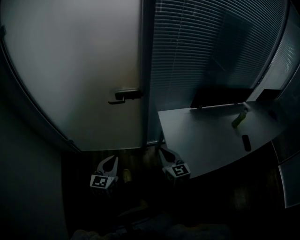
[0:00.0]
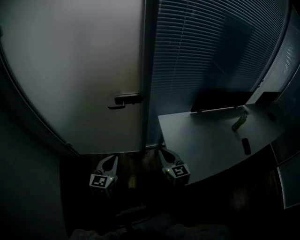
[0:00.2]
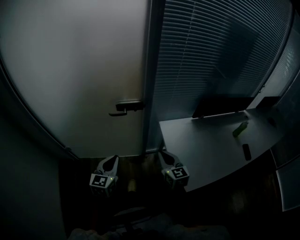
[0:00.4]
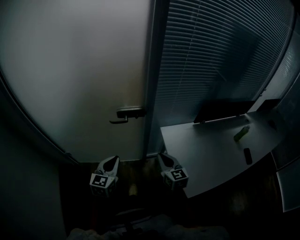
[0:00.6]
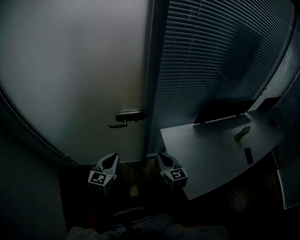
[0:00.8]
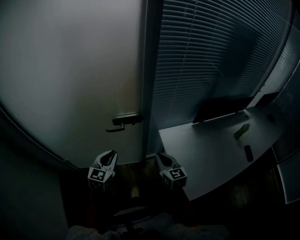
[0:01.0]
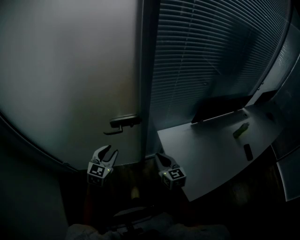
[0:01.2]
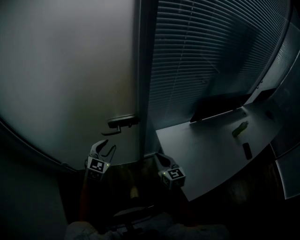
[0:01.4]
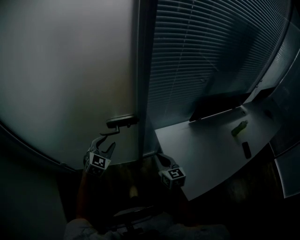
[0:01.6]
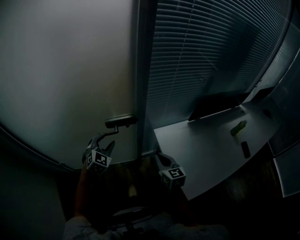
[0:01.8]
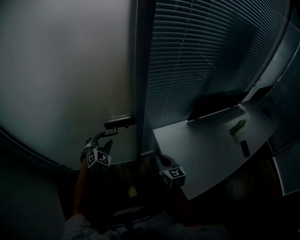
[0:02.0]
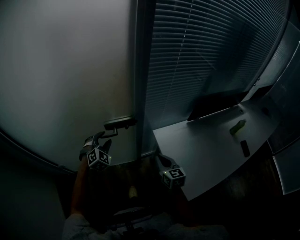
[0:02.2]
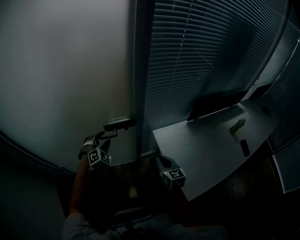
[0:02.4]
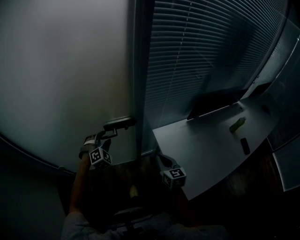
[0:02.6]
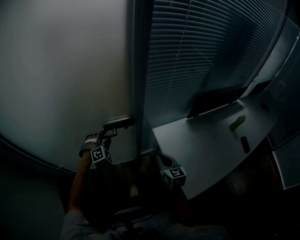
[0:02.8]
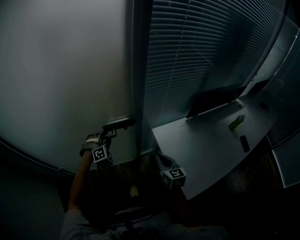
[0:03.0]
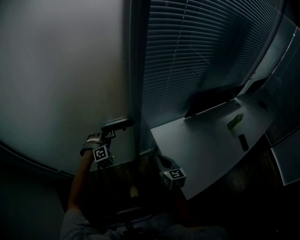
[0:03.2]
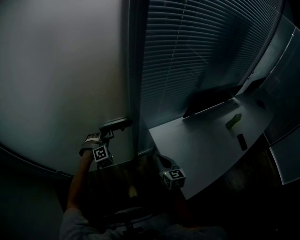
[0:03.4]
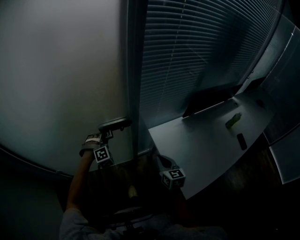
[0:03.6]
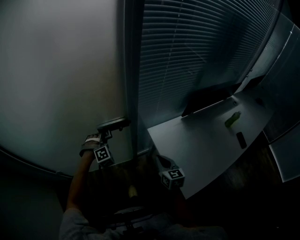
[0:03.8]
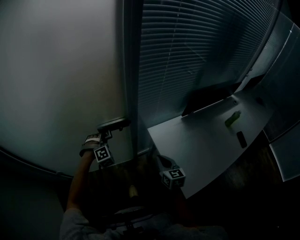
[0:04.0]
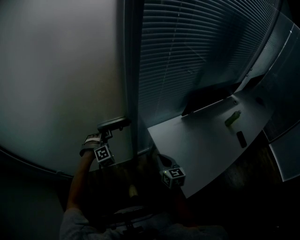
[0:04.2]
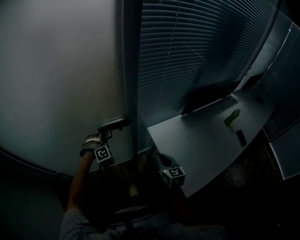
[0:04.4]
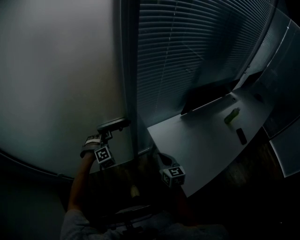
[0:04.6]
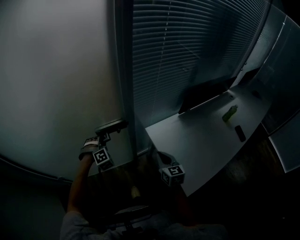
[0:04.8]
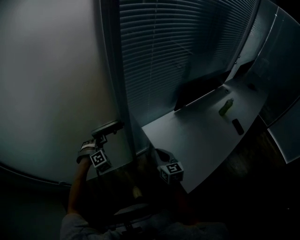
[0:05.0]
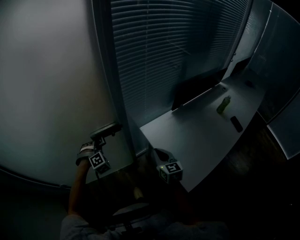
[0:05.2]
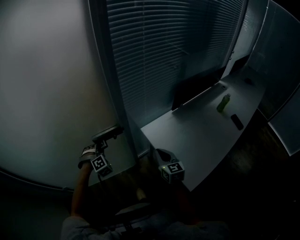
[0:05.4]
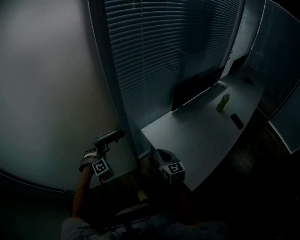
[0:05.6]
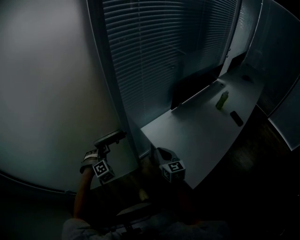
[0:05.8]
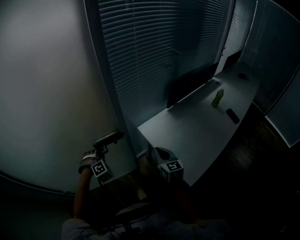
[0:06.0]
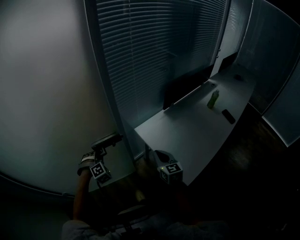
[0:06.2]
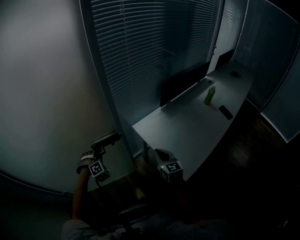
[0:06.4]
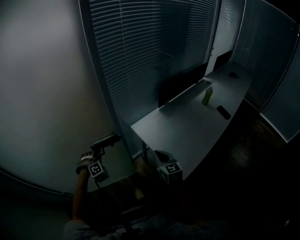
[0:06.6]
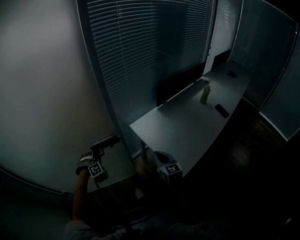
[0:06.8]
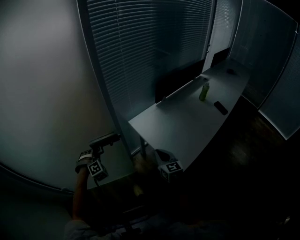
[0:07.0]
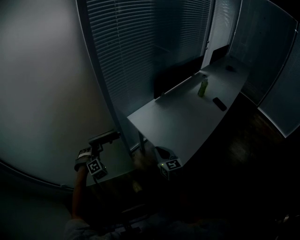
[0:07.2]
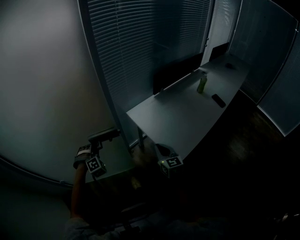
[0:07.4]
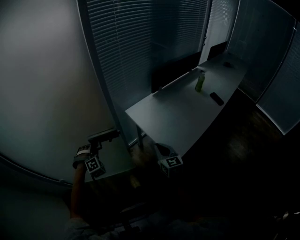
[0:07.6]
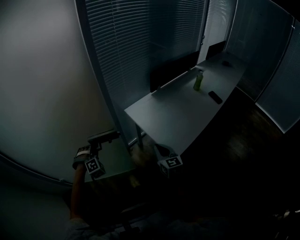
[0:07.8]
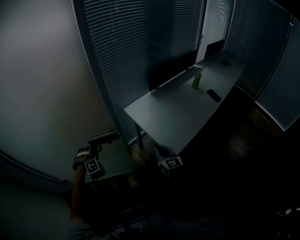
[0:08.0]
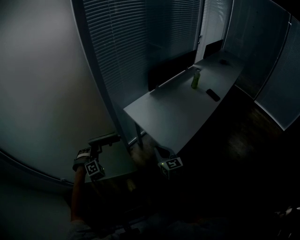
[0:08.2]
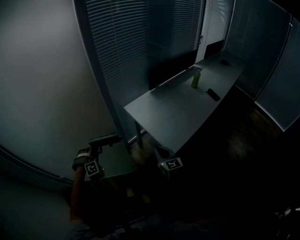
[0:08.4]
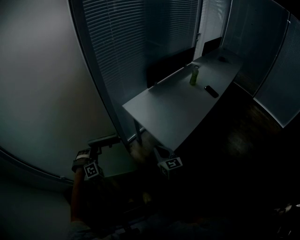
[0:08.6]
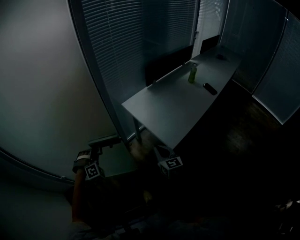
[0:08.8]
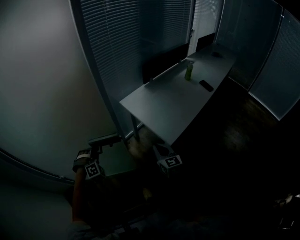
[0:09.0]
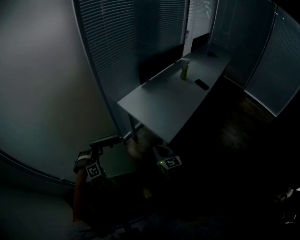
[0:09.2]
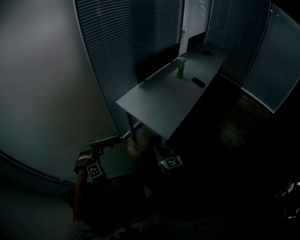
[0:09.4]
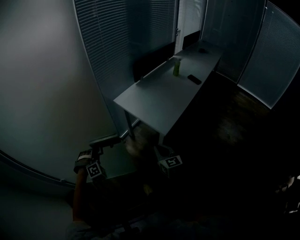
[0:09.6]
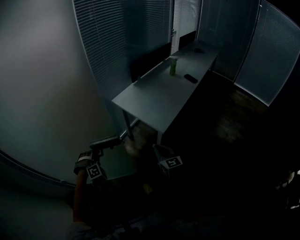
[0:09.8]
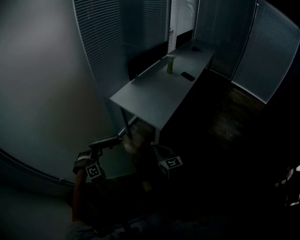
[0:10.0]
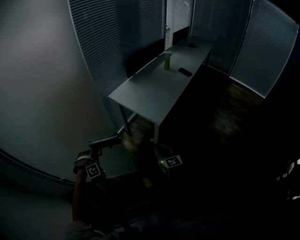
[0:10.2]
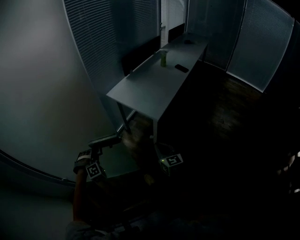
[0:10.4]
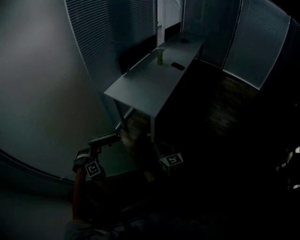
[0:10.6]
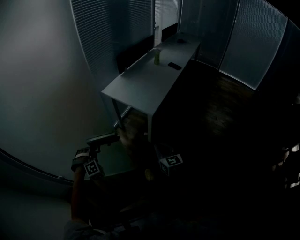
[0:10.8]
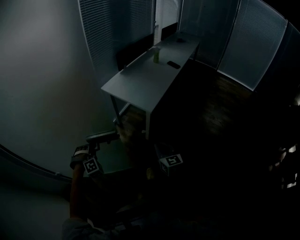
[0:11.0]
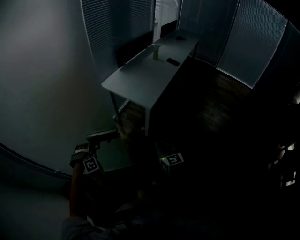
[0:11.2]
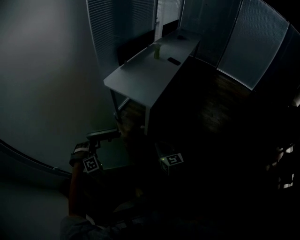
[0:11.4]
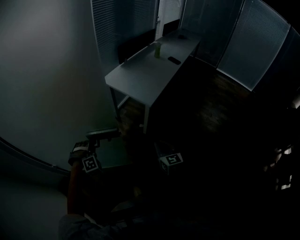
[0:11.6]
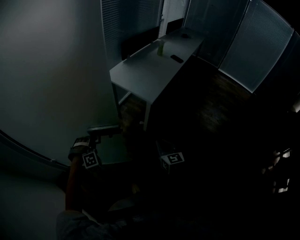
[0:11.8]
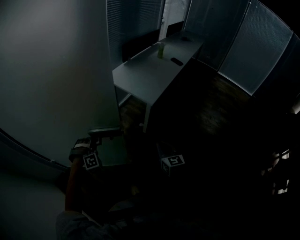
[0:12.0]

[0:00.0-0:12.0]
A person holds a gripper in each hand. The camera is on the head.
0:00.0 to 0:01.6: The left gripper goes roughly 30 cm forward, turns by some 40 degrees, and opens its fingers. The right gripper is displaced forward by roughly 15 cm.
0:01.6 to 0:03.0: The left gripper goes about 10 cm downward and forward, and swivels about 40 degrees.
0:03.0 to 0:04.4: The left gripper closes its fingers.
0:04.4 to 0:06.0: The left gripper goes roughly 5 cm backward.
0:06.0 to 0:07.6: The two grippers go approximately 15 cm backward.
0:07.6 to 0:09.0: The two grippers go about 10 cm backward.
0:09.0 to 0:10.4: Both grippers move backward, some 20 cm.
0:10.4 to 0:12.0: The two grippers go roughly 10 cm backward.

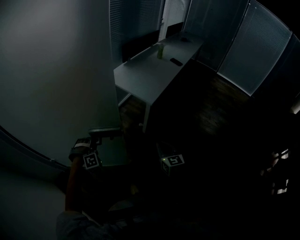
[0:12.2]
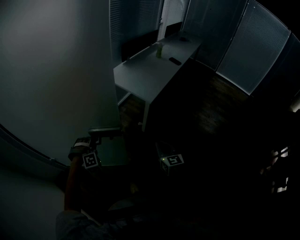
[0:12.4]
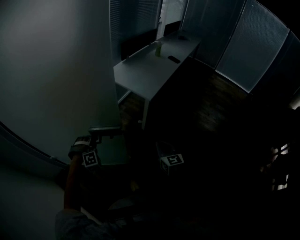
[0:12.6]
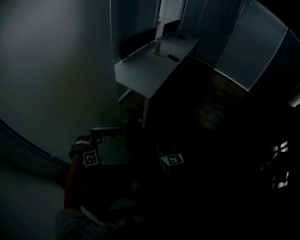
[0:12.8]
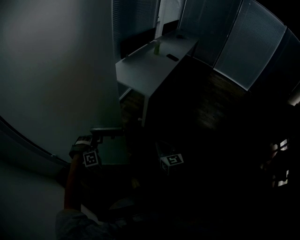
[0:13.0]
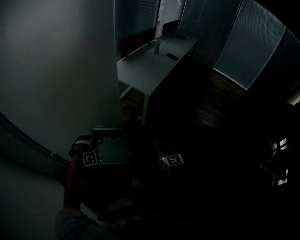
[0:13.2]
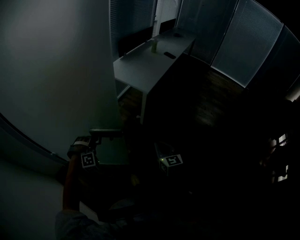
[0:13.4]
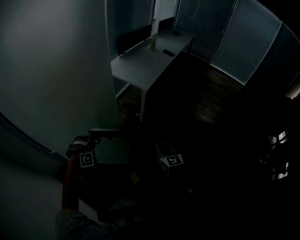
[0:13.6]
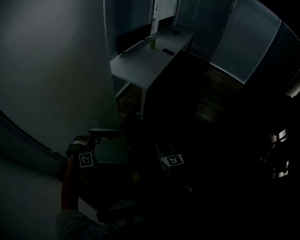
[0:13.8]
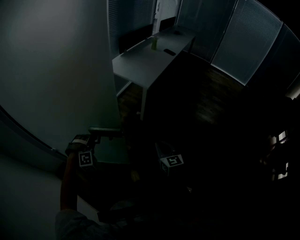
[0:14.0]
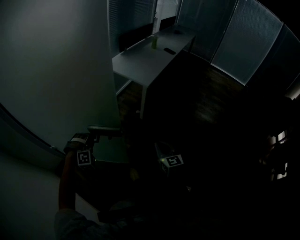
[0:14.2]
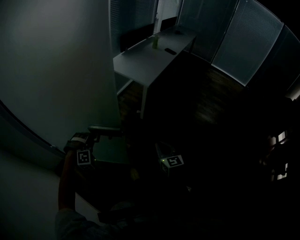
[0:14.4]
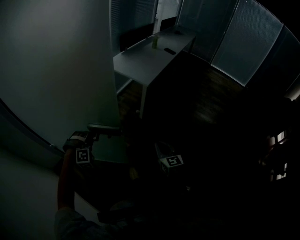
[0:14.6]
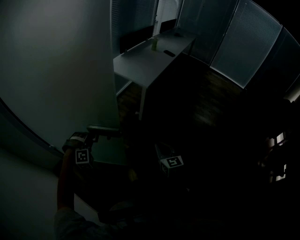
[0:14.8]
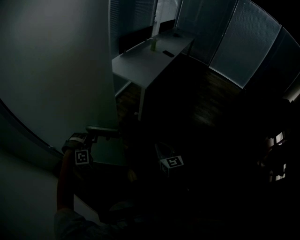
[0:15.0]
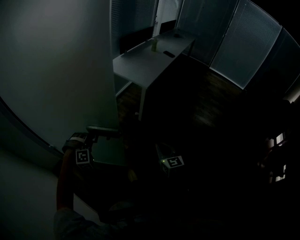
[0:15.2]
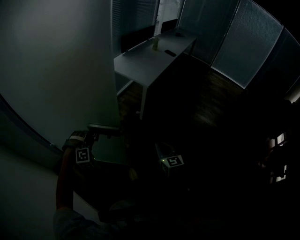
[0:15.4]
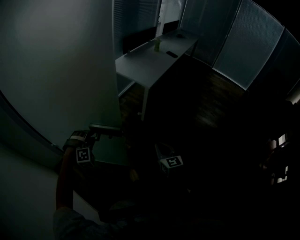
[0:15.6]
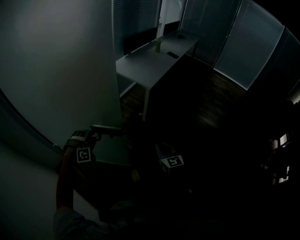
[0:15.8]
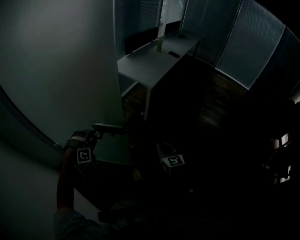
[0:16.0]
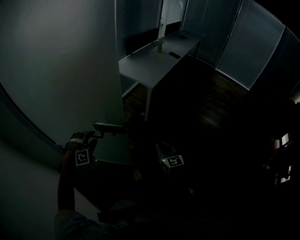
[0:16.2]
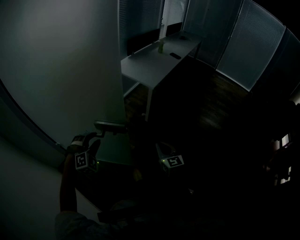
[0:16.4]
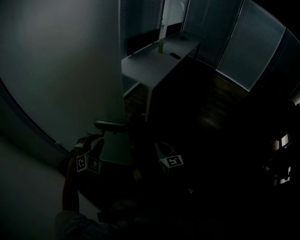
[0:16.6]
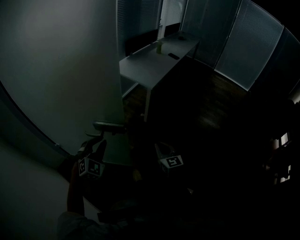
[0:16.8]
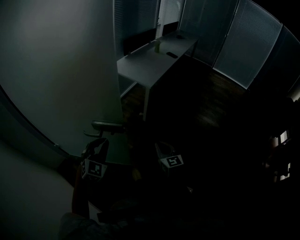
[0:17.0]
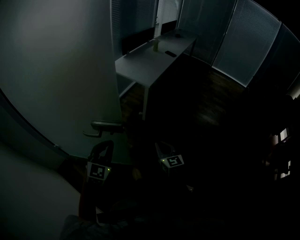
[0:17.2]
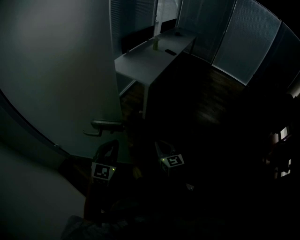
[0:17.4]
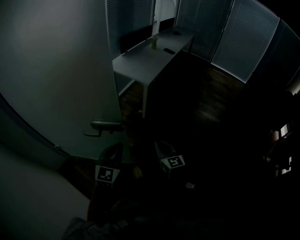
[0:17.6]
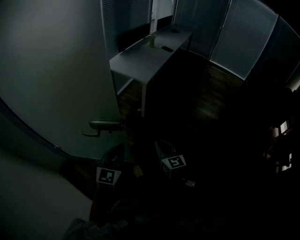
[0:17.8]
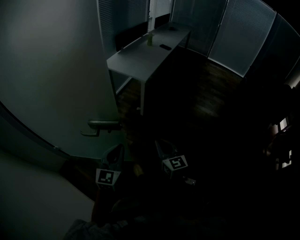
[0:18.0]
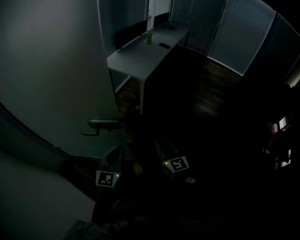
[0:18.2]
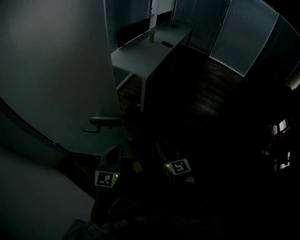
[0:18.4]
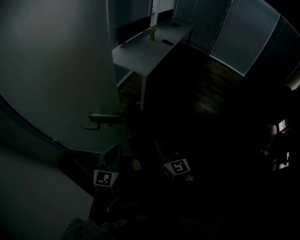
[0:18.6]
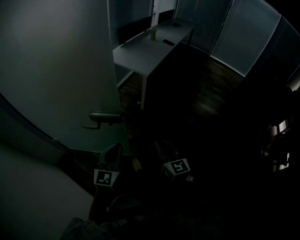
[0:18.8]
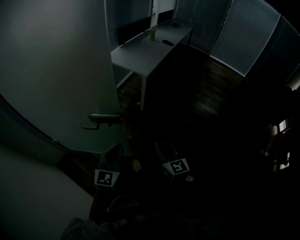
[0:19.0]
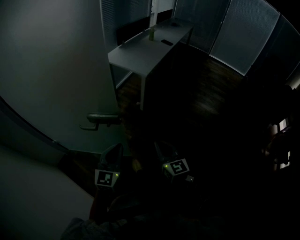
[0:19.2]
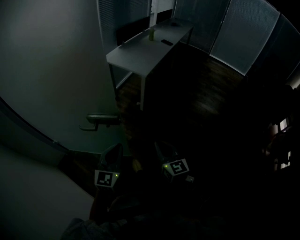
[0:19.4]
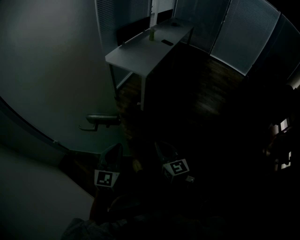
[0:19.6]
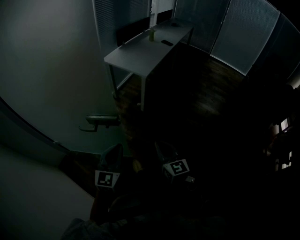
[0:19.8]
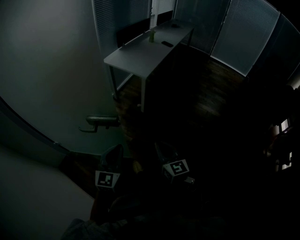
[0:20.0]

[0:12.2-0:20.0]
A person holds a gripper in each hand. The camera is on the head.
0:12.2 to 0:13.8: The two grippers go approximately 15 cm backward.
0:13.8 to 0:15.4: The left gripper opens up.
0:15.4 to 0:16.8: The left gripper travels upward and backward by about 10 cm, rotates about 40 degrees, and opens and closes again.
0:16.8 to 0:18.4: The right gripper goes roughly 10 cm backward and upward. Meanwhile the left gripper goes about 10 cm to the right and backward, and rolls counterclockwise, seen from behind, by some 40 degrees.
0:18.4 to 0:20.0: The grippers move only a little.

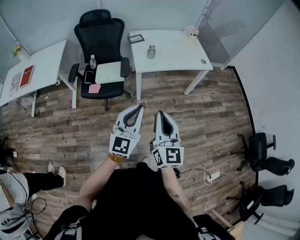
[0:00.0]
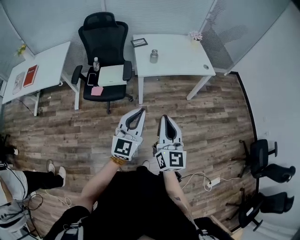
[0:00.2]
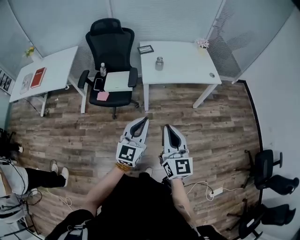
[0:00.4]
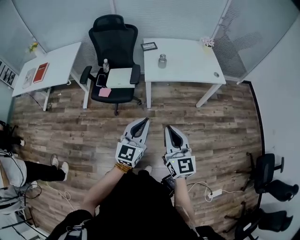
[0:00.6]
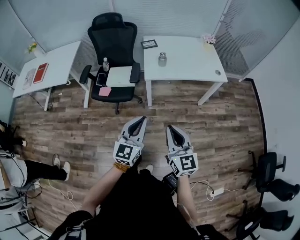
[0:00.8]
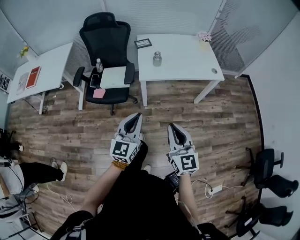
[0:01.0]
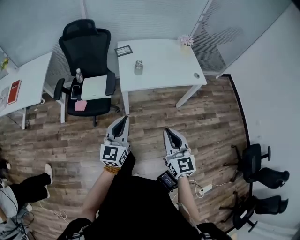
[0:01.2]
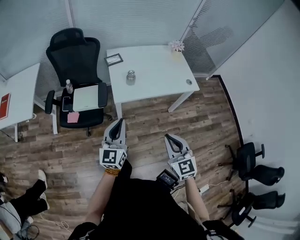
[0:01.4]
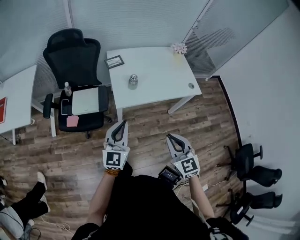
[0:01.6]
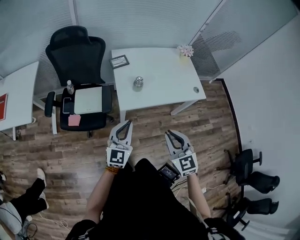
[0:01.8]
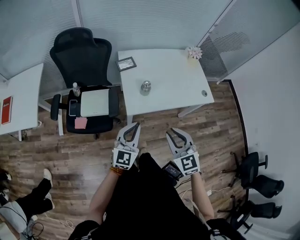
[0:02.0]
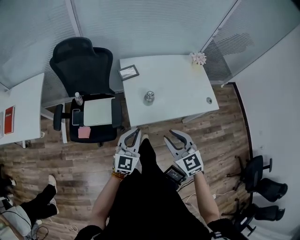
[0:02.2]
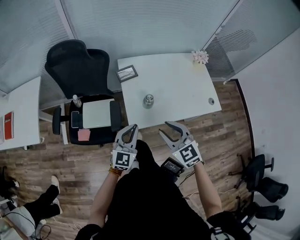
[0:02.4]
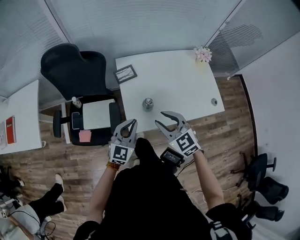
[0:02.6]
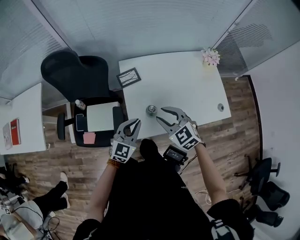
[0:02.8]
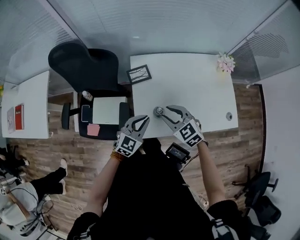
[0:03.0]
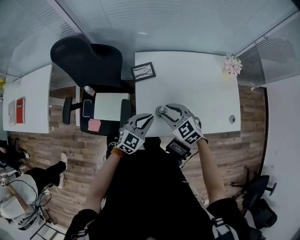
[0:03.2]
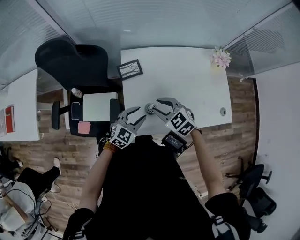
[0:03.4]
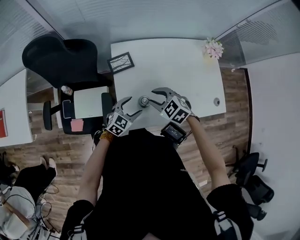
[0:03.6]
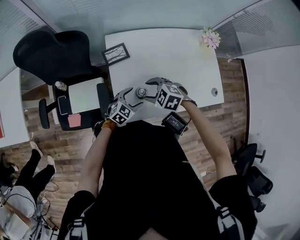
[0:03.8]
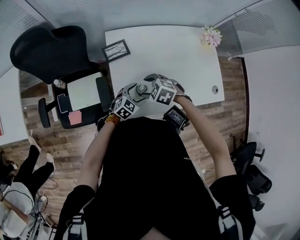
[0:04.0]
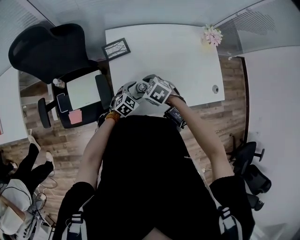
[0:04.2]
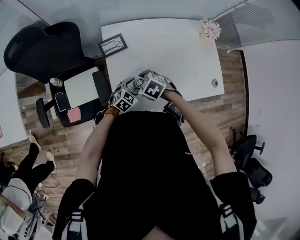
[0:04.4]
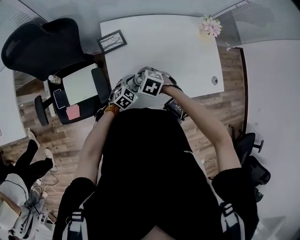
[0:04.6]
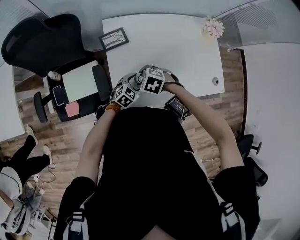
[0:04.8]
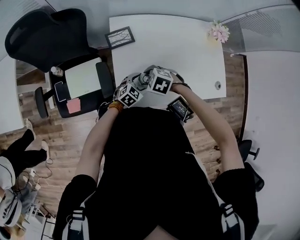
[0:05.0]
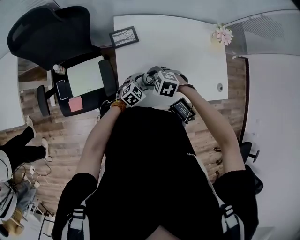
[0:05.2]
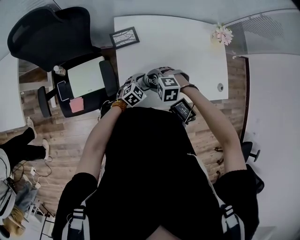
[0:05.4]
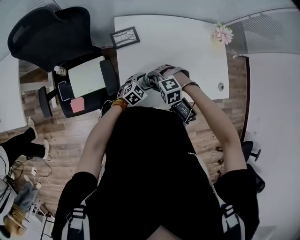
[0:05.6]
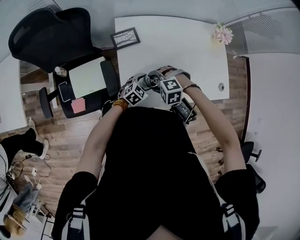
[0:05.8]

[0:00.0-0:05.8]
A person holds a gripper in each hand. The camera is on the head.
0:00.0 to 0:01.4: The right gripper is displaced forward, to the right and downward by roughly 20 cm, and changes its angle by some 30 degrees, while the left gripper heads forward, covering approximately 20 cm.
0:01.4 to 0:02.8: Both grippers travel together forward, about 40 cm. The left gripper swivels about 30 degrees; the right gripper rotates about 30 degrees, and opens up.
0:02.8 to 0:04.4: The grippers both shift downward by approximately 20 cm. The right gripper tips its fingers downward by roughly 30 degrees, and opens, while the left gripper changes its angle by roughly 30 degrees, and opens up.
0:04.4 to 0:05.8: The right gripper twists roughly 40 degrees counterclockwise, seen from behind.
